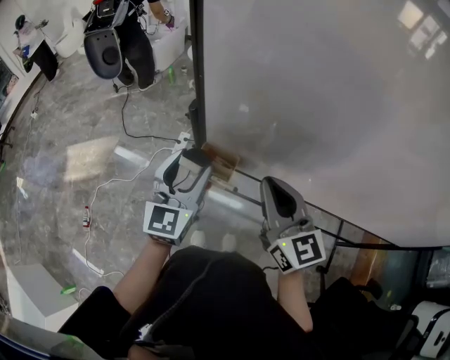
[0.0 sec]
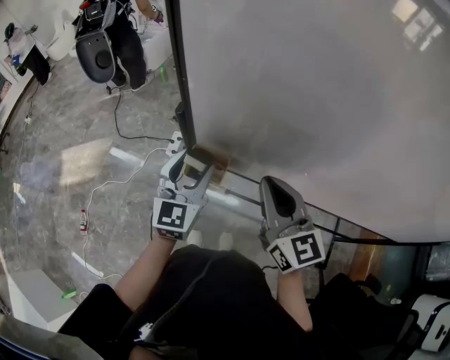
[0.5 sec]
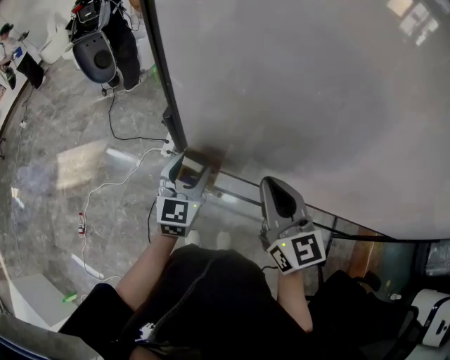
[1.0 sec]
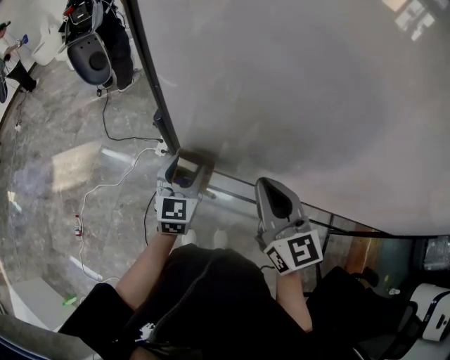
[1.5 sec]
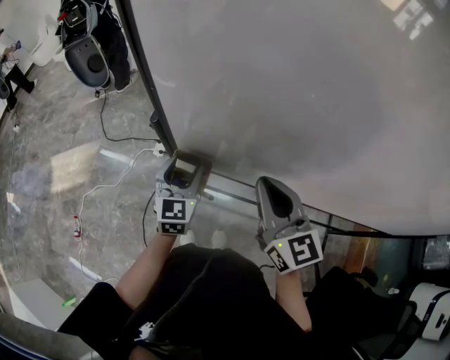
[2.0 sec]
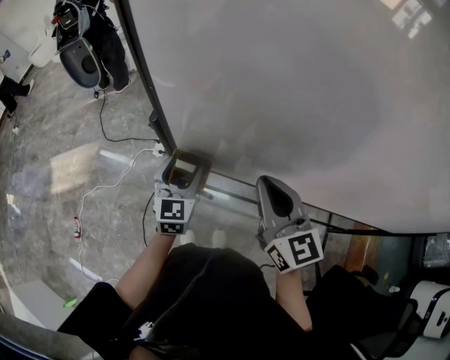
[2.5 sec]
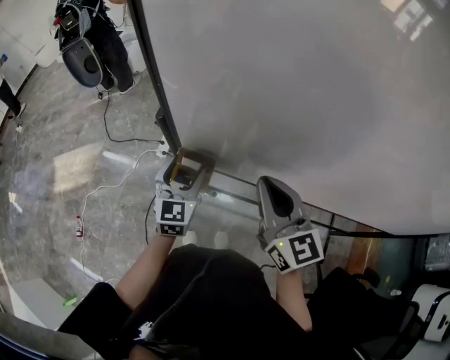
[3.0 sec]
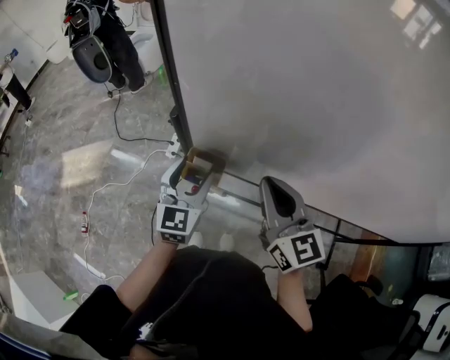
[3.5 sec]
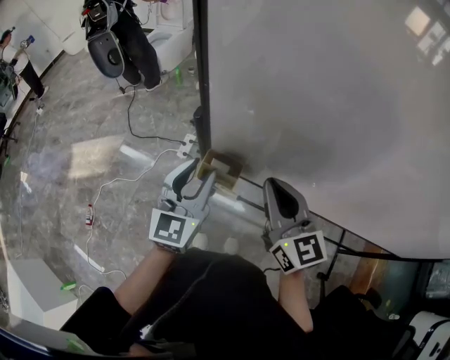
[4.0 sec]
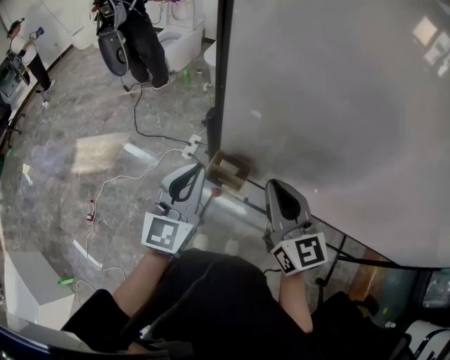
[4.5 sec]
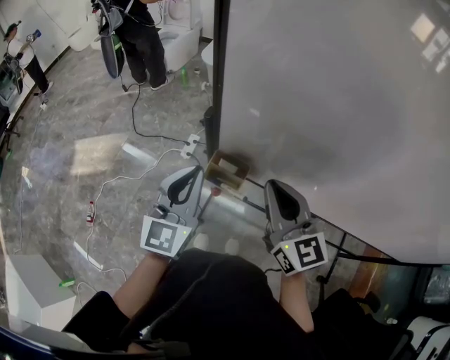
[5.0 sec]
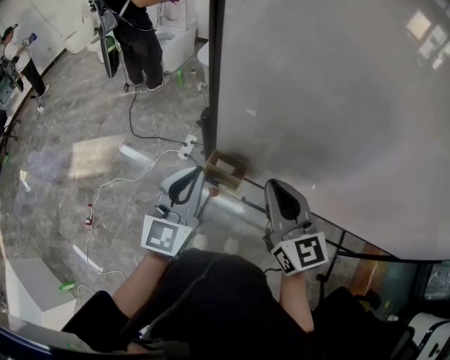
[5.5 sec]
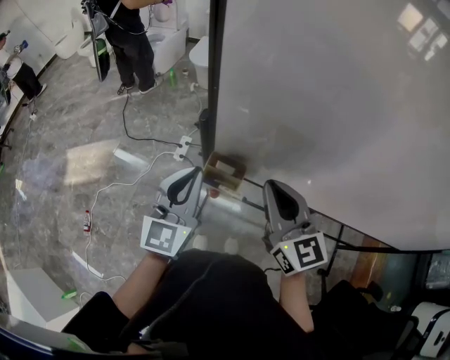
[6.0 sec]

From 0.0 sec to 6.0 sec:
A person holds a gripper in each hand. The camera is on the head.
From 0.0 sec to 2.0 sec: The right gripper moves to the right, roughly 5 cm. The left gripper moves downward, forward and to the right, some 15 cm.
From 2.0 sec to 4.0 sec: The right gripper travels to the left by some 5 cm. The left gripper is displaced upward and backward by about 10 cm.
From 4.0 sec to 6.0 sec: The left gripper closes up.

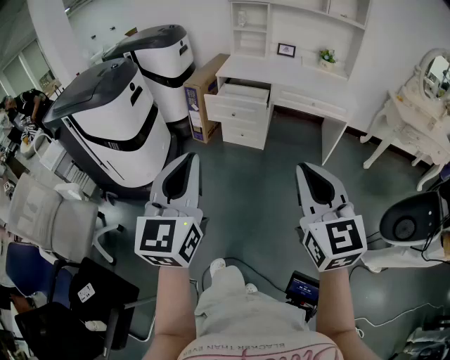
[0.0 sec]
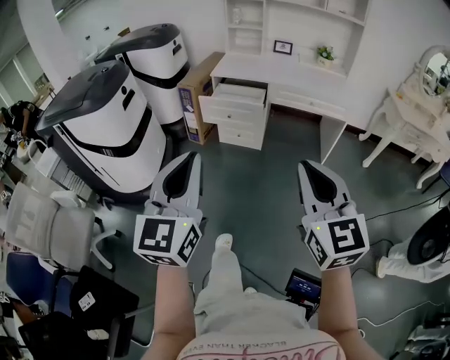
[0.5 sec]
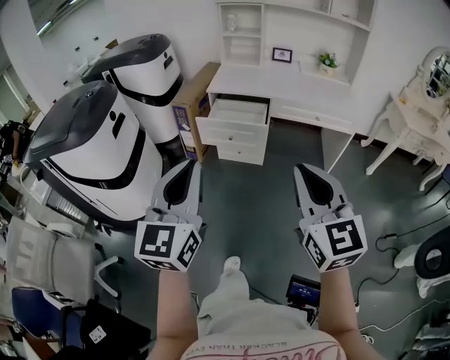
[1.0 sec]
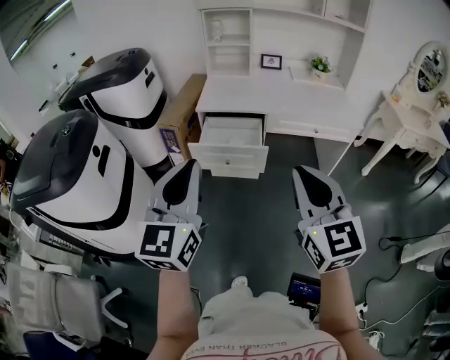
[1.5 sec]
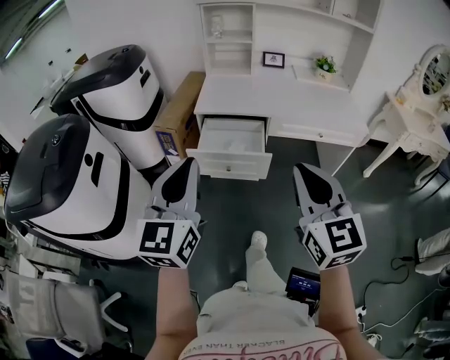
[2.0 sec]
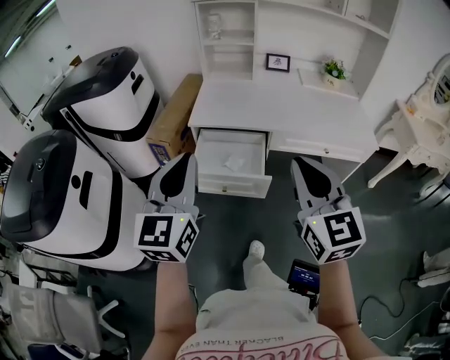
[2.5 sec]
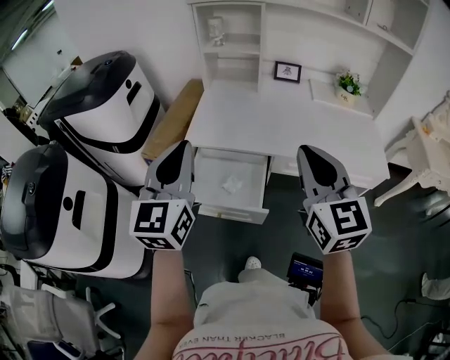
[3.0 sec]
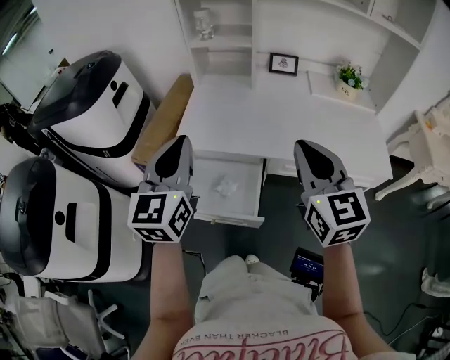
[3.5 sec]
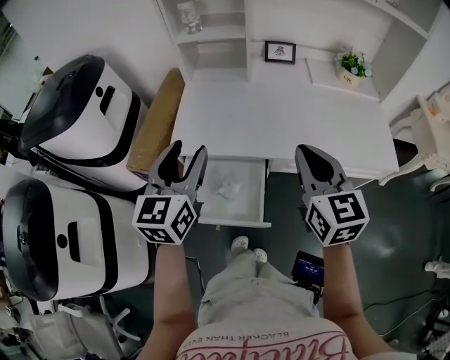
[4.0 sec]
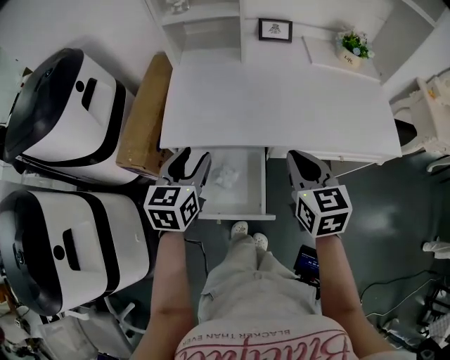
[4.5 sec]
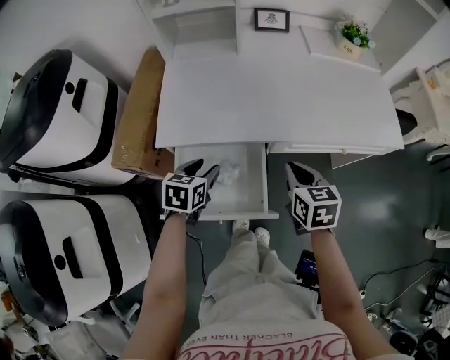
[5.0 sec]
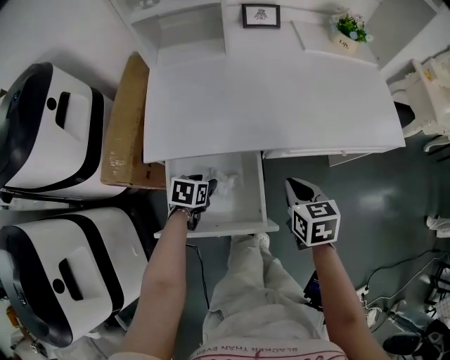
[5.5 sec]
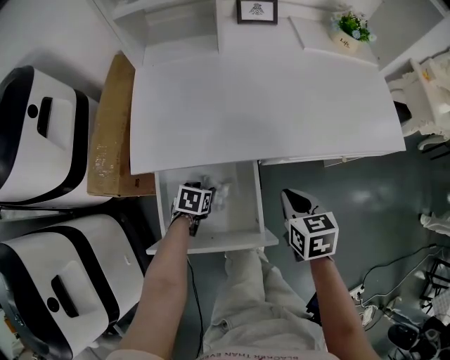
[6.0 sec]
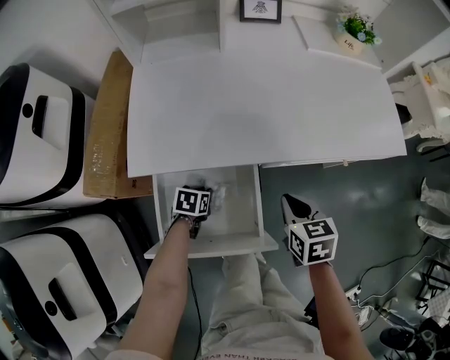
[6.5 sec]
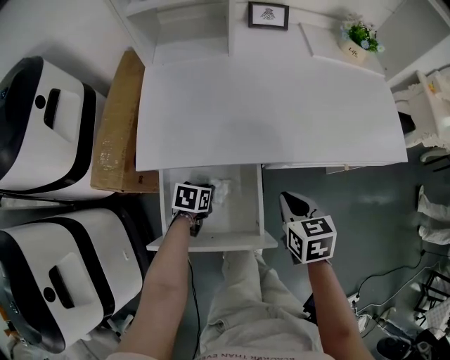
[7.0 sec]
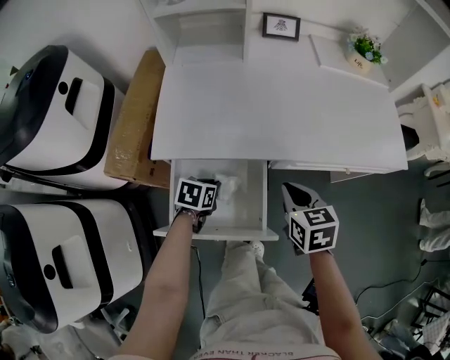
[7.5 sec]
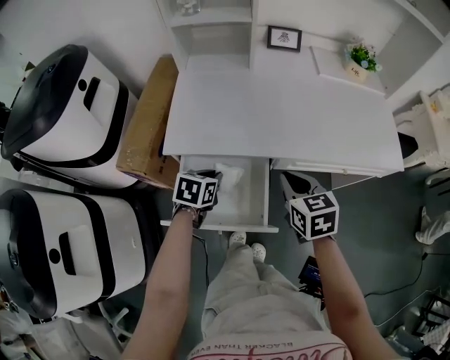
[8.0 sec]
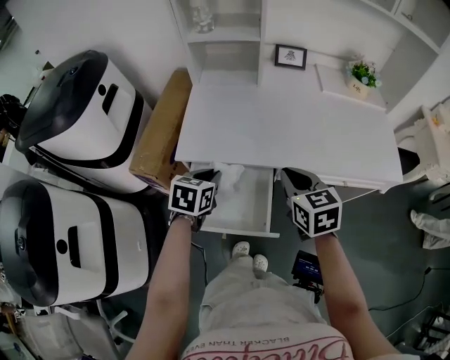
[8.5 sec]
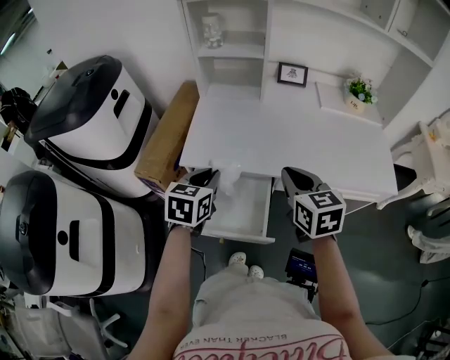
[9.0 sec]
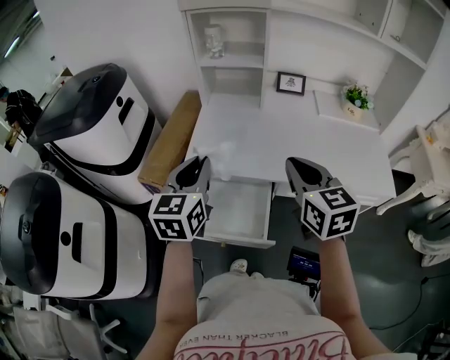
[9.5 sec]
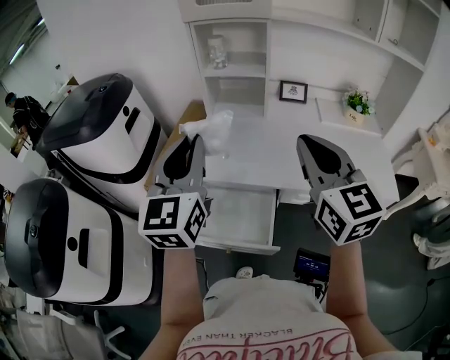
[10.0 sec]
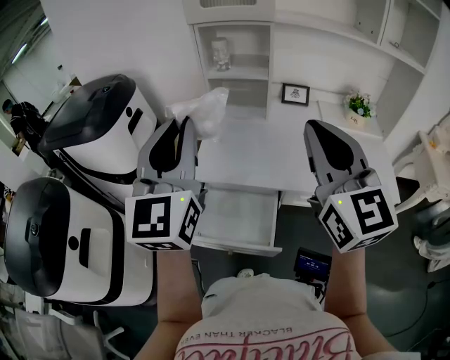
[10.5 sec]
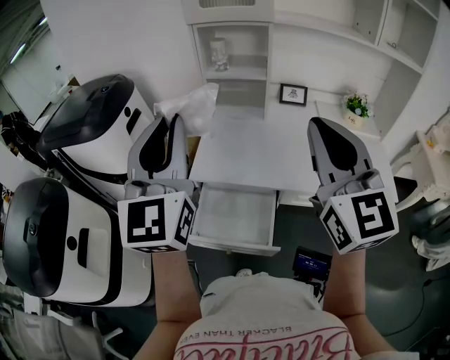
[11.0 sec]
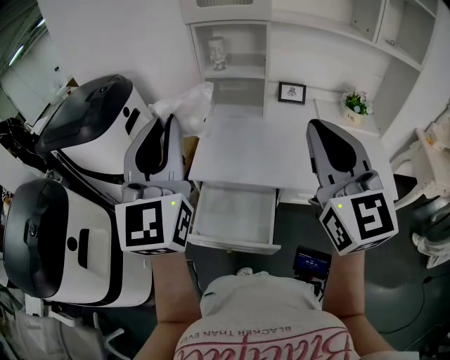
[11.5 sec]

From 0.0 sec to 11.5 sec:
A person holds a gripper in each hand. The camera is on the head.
From 0.0 sec to 2.0 sec: The grippers both shift forward by approximately 40 cm.
From 2.0 sec to 4.0 sec: Both grippers are carried forward, some 40 cm. The left gripper opens its fingers.
From 4.0 sec to 6.0 sec: The right gripper shifts about 25 cm downward, and angles its fingers downward, by approximately 30 degrees. The left gripper travels downward by roughly 50 cm, and tips its fingers downward by approximately 60 degrees.
From 6.0 sec to 7.5 sec: The right gripper shifts by roughly 5 cm; the left gripper heads upward, covering approximately 10 cm, and closes up.
From 7.5 sec to 9.5 sec: The left gripper shifts roughly 35 cm upward, and tilts its fingers some 40 degrees upward. The right gripper is displaced upward by roughly 25 cm, and changes its angle by roughly 30 degrees.
From 9.5 sec to 11.5 sec: The two grippers go about 20 cm upward. The left gripper changes its angle by approximately 40 degrees. Meanwhile the right gripper changes its angle by approximately 30 degrees.

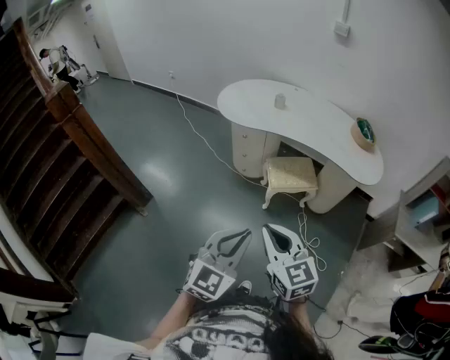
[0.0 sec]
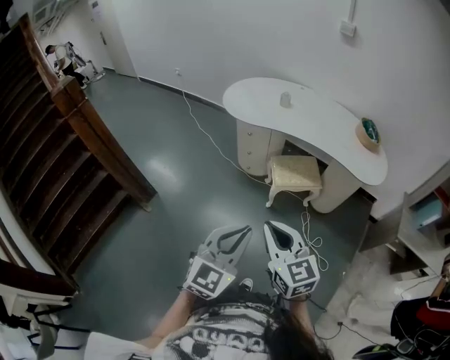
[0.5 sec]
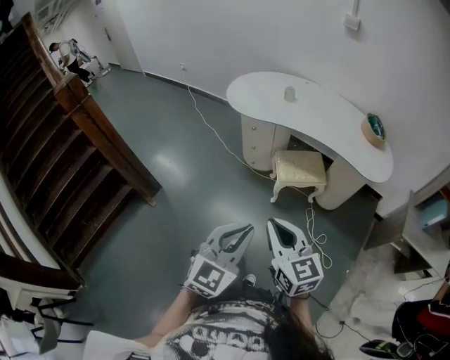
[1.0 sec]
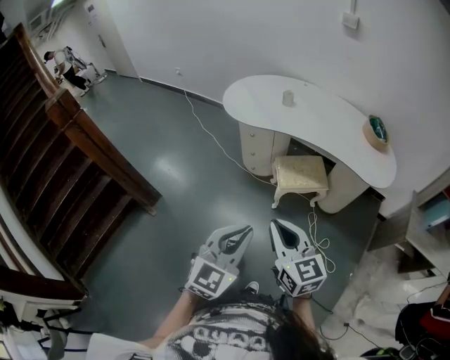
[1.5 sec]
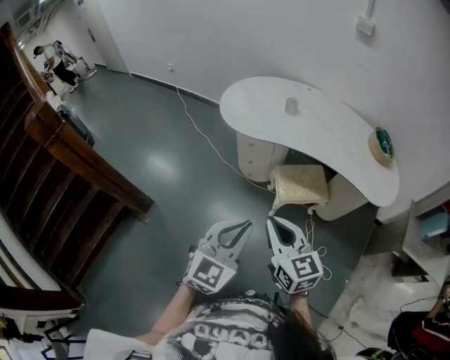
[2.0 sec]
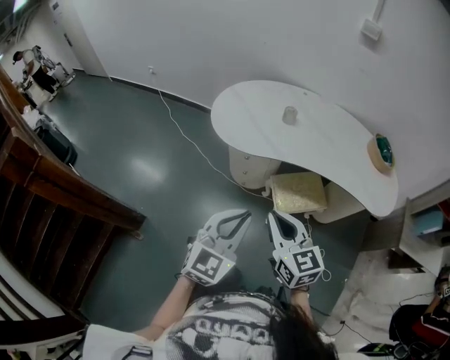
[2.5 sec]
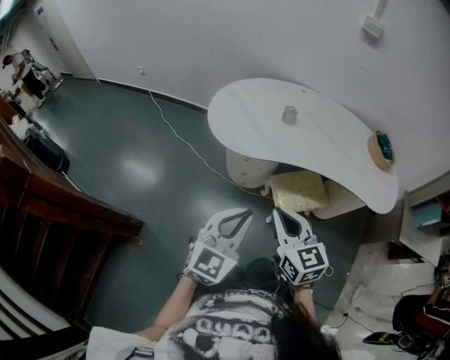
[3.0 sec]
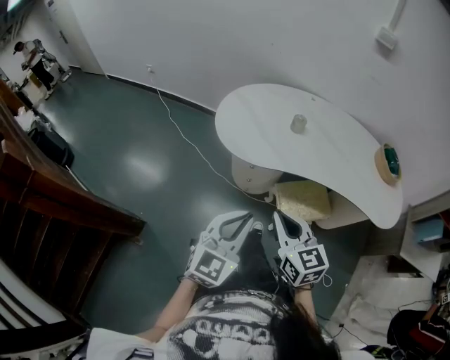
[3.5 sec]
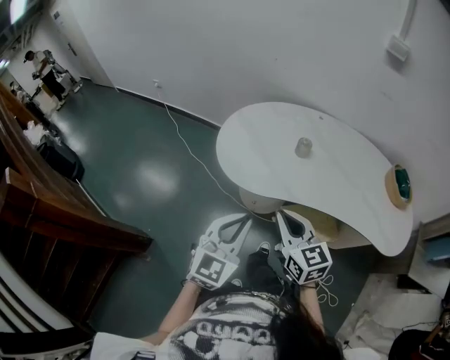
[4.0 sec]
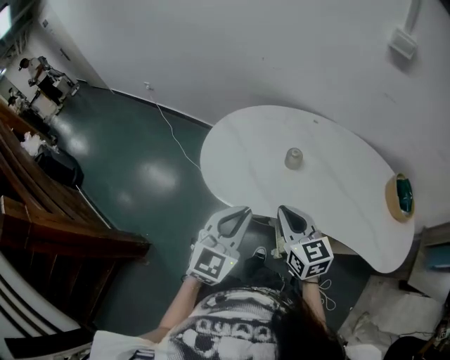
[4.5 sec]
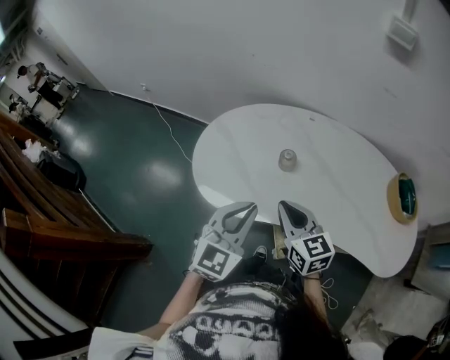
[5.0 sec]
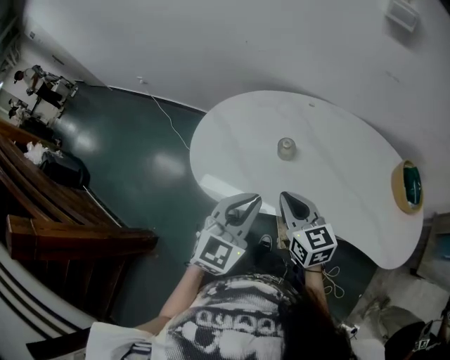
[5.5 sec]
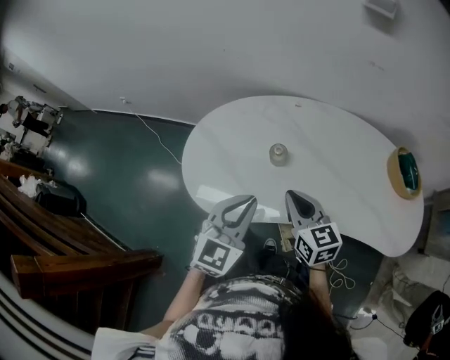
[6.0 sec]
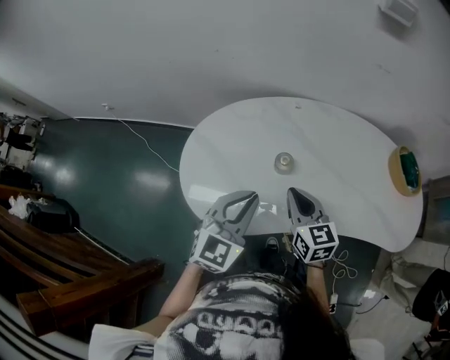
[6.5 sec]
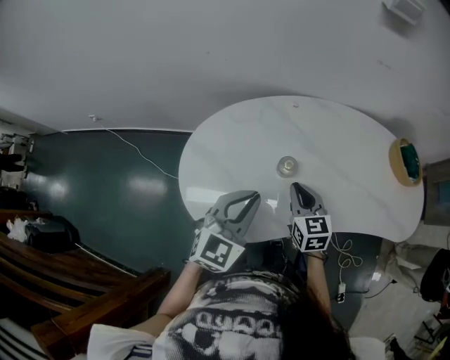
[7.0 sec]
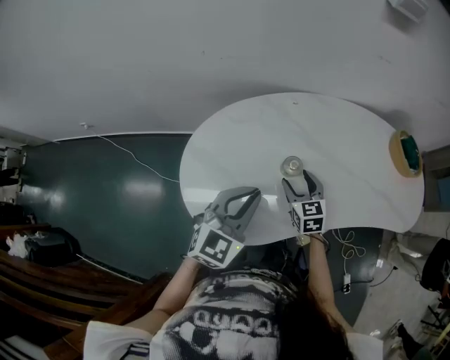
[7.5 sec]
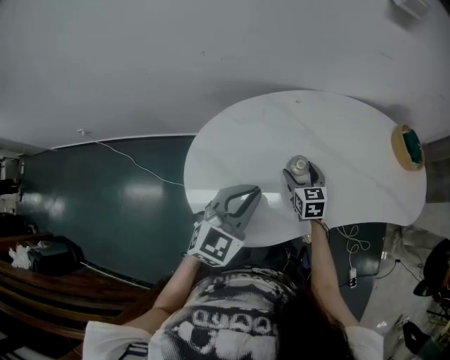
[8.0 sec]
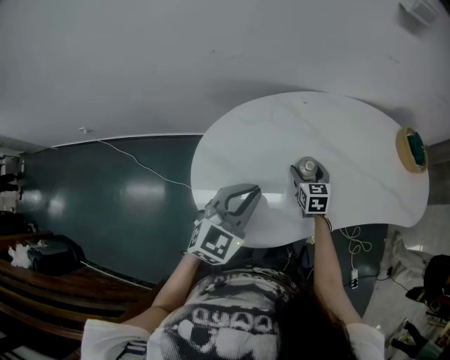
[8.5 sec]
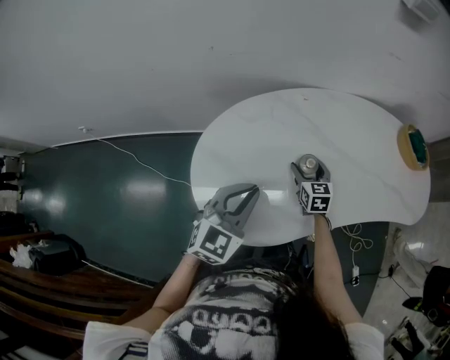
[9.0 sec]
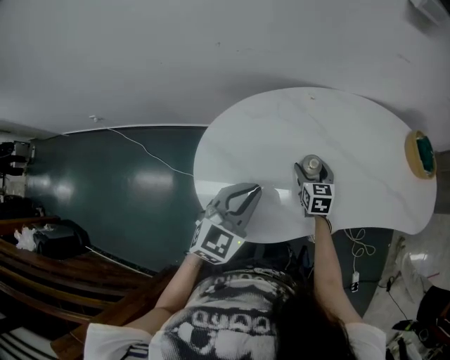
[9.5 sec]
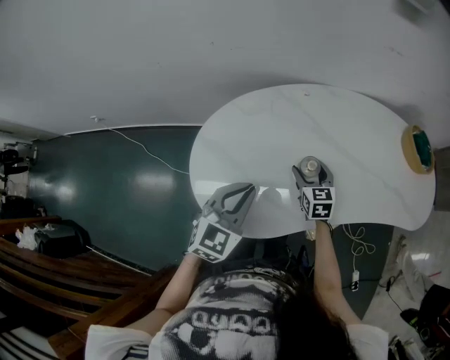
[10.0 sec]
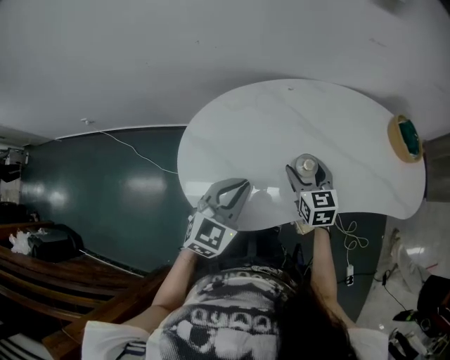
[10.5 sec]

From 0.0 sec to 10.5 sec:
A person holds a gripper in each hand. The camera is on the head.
From 0.0 sec to 2.0 sec: The grippers both shift forward by approximately 20 cm.
From 2.0 sec to 4.0 sec: Both grippers move forward, some 30 cm.
From 4.0 sec to 6.5 sec: Both grippers travel together forward, about 30 cm. The right gripper turns by about 20 degrees.
From 6.5 sec to 8.5 sec: The right gripper travels downward and forward by some 20 cm, changes its angle by approximately 30 degrees, and opens, while the left gripper moves to the left and forward, roughly 10 cm.
From 8.5 sec to 10.5 sec: The left gripper ends up approximately 5 cm from where it was, while the right gripper goes roughly 10 cm upward and backward.
